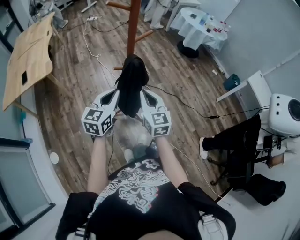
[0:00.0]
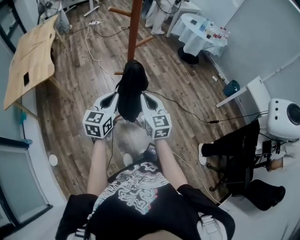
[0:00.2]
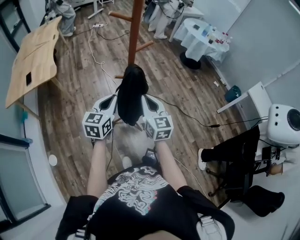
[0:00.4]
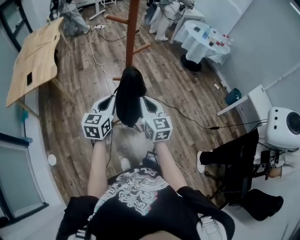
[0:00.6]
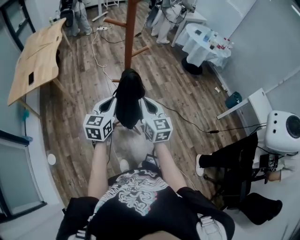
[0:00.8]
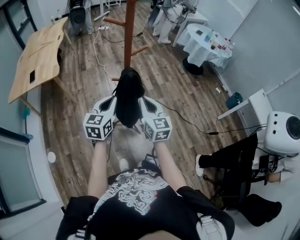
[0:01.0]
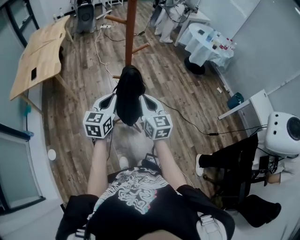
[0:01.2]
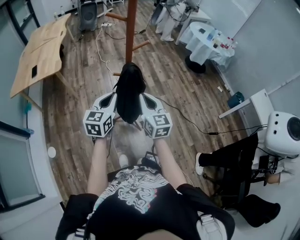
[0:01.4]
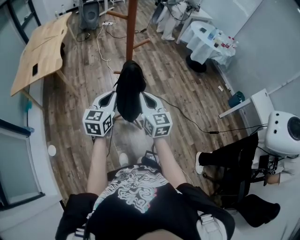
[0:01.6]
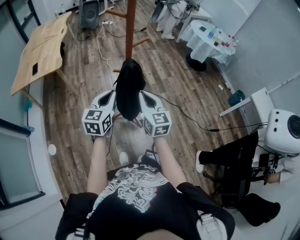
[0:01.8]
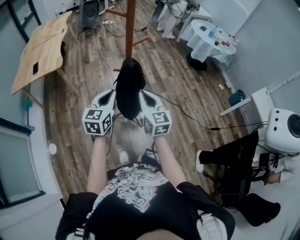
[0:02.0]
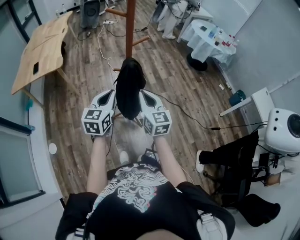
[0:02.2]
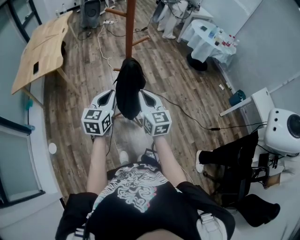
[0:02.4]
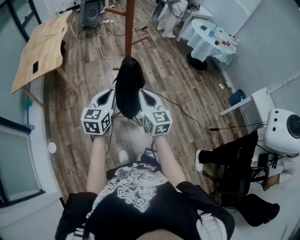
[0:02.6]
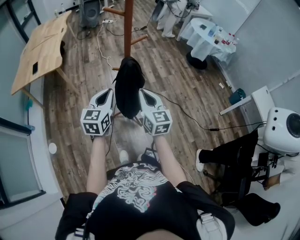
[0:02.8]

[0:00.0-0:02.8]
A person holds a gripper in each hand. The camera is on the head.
0.0 to 1.4 s: The right gripper changes place by approximately 5 cm.
1.4 to 2.8 s: The grippers stay close to where they were, moving slightly.

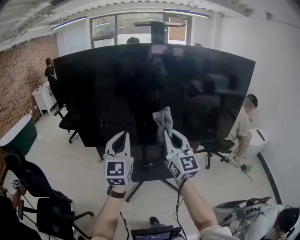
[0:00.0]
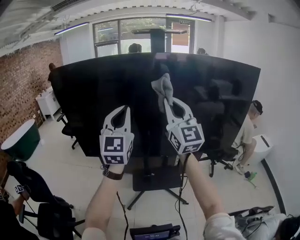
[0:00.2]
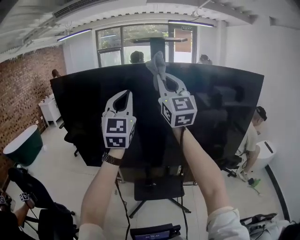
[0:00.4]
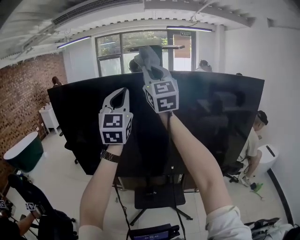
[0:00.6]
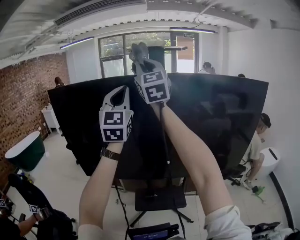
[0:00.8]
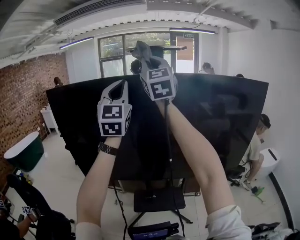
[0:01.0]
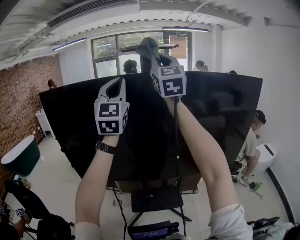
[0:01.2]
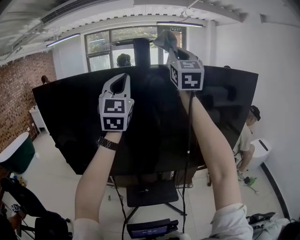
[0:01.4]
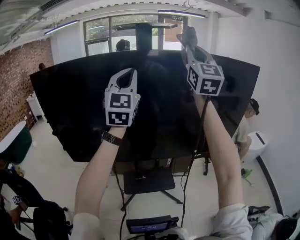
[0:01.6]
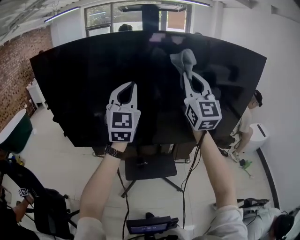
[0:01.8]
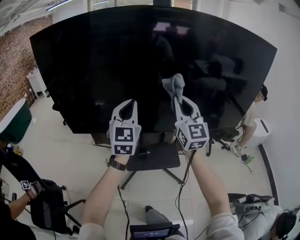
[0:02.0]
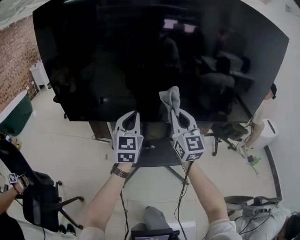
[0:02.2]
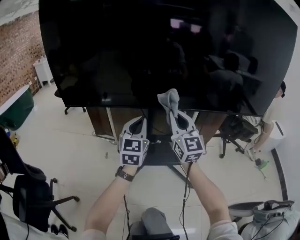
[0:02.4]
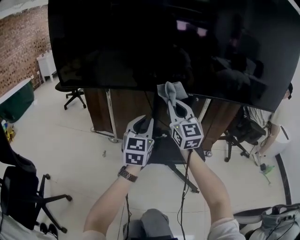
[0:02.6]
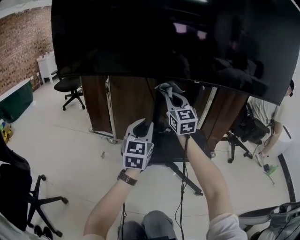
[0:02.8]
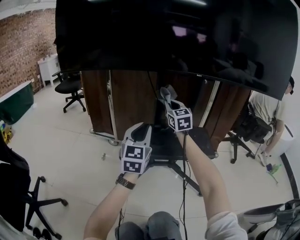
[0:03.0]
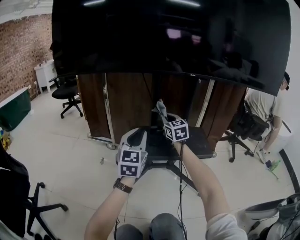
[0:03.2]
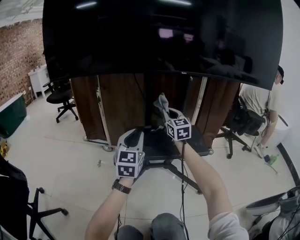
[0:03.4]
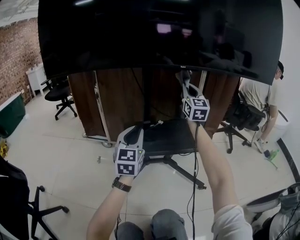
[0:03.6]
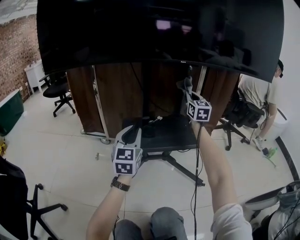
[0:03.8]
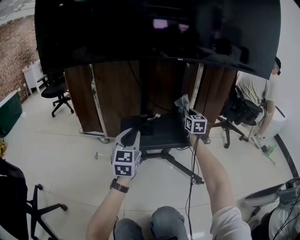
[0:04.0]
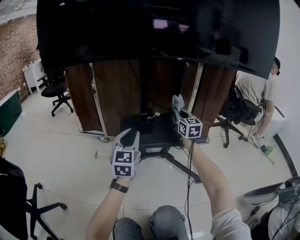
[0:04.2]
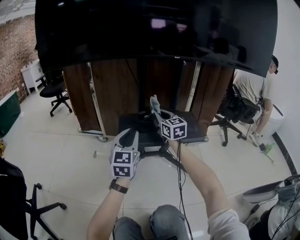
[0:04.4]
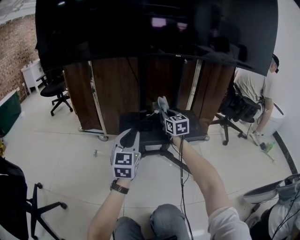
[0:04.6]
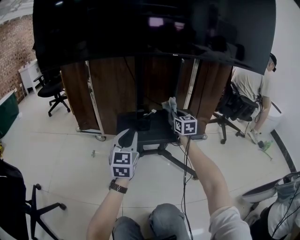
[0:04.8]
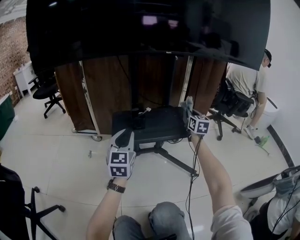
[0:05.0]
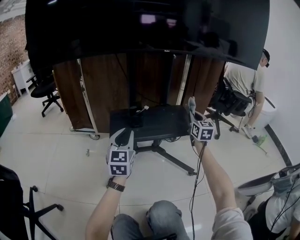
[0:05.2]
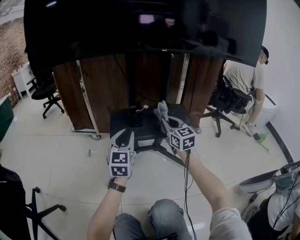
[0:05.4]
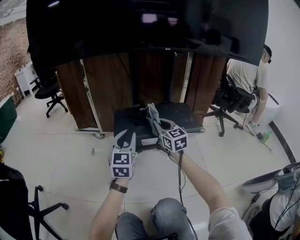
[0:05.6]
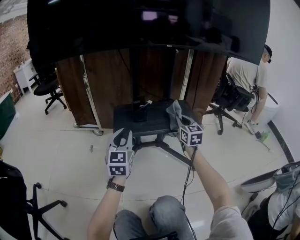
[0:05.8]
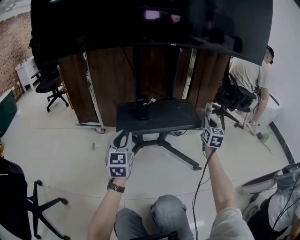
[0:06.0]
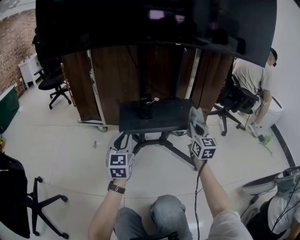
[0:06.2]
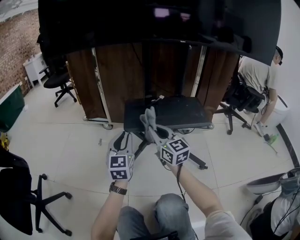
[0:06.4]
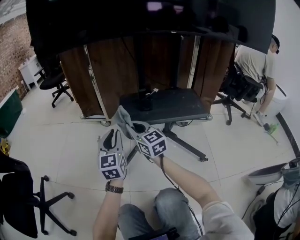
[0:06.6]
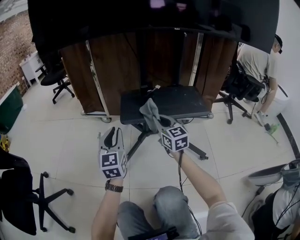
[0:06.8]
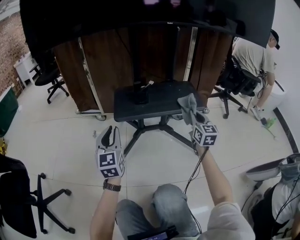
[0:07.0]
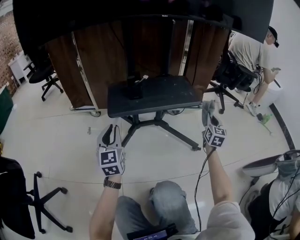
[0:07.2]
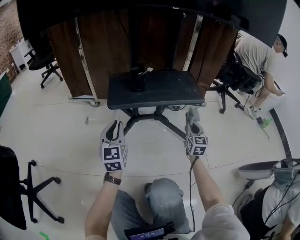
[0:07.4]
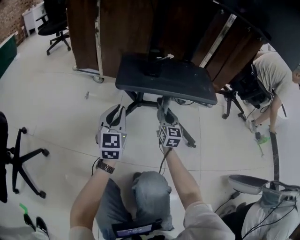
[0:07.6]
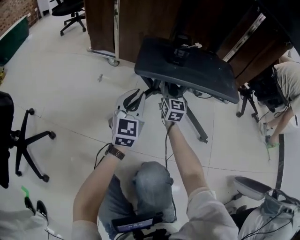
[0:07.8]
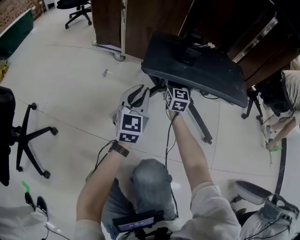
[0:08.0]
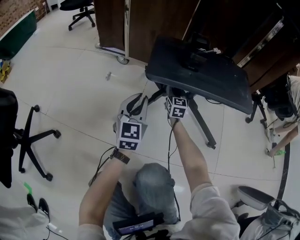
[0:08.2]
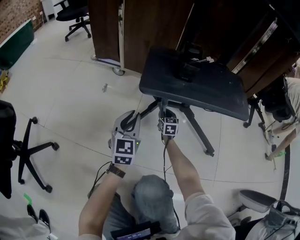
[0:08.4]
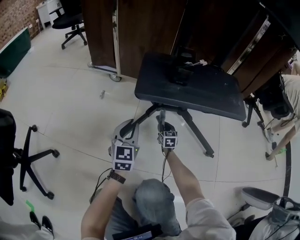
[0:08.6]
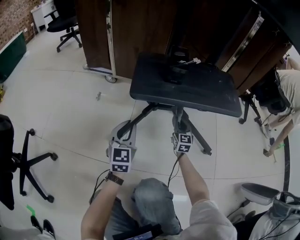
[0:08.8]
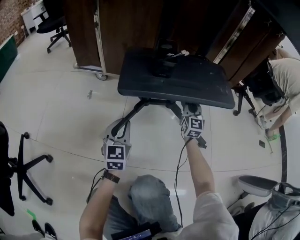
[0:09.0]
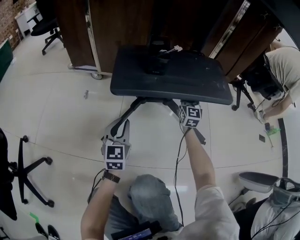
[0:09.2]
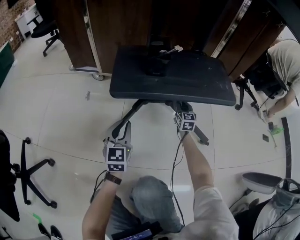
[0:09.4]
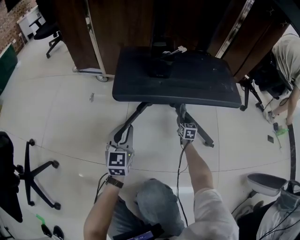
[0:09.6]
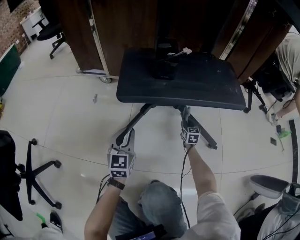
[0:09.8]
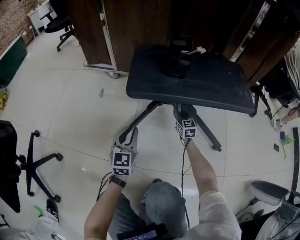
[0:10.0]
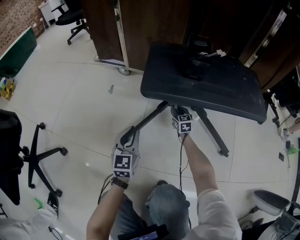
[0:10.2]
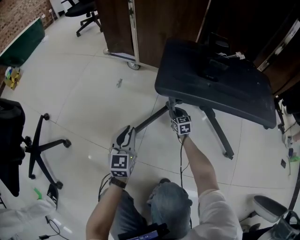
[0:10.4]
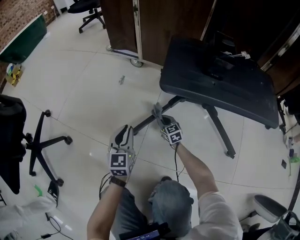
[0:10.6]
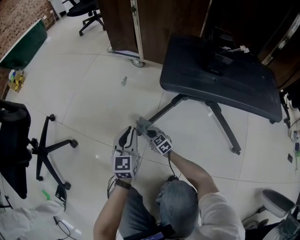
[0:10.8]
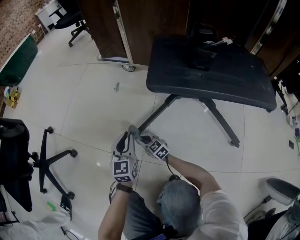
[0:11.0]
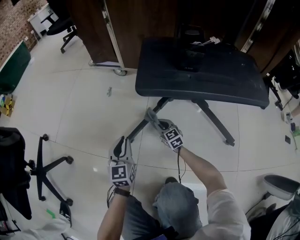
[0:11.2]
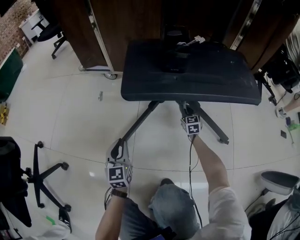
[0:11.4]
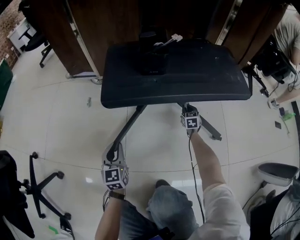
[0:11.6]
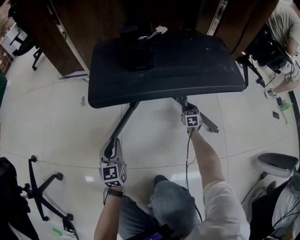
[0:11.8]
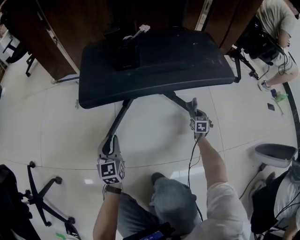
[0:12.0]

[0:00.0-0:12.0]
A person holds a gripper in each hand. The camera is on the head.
0.0 to 1.6 s: Both grippers travel together upward, forward and to the right, some 35 cm. The right gripper swivels about 20 degrees.
1.6 to 3.0 s: Both grippers move downward, some 1 m. The right gripper angles its fingers downward, by some 30 degrees; the left gripper turns by about 20 degrees.
3.0 to 4.4 s: The right gripper goes some 10 cm downward and backward, and moves approximately 20 cm to the right and comes back. Meanwhile the left gripper moves downward, roughly 10 cm.
4.4 to 6.0 s: The left gripper shifts about 5 cm downward; the right gripper moves left and right over roughly 30 cm, changing direction 2 times, and turns by approximately 40 degrees.
6.0 to 7.6 s: The left gripper shifts some 10 cm downward; the right gripper moves approximately 35 cm, and changes its angle by roughly 20 degrees.
7.6 to 9.0 s: The left gripper heads downward and forward, covering approximately 10 cm; the right gripper travels forward and to the right by approximately 15 cm, and travels downward and back again, about 25 cm each way.
9.0 to 10.4 s: The left gripper travels to the left and downward by some 15 cm, while the right gripper moves up and down over about 30 cm, changing direction 2 times, and tips its fingers downward by approximately 30 degrees.
10.4 to 12.0 s: The left gripper changes place by about 10 cm. The right gripper changes place by some 40 cm, and rotates approximately 40 degrees.

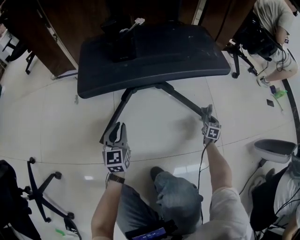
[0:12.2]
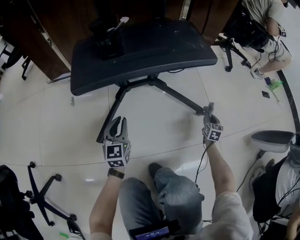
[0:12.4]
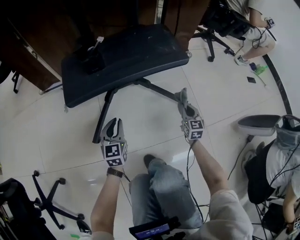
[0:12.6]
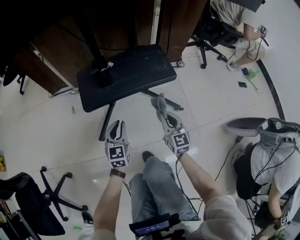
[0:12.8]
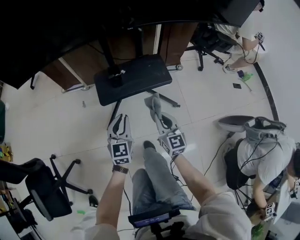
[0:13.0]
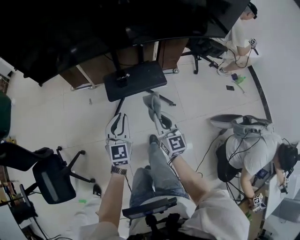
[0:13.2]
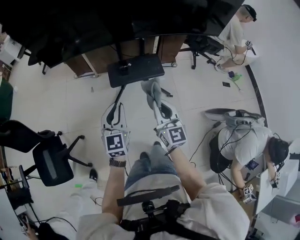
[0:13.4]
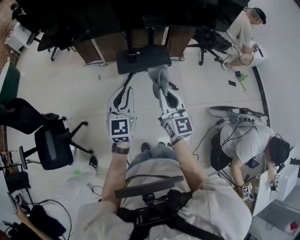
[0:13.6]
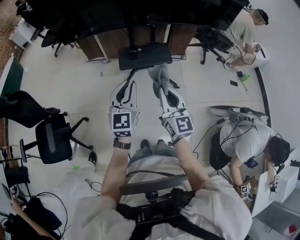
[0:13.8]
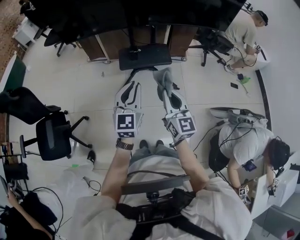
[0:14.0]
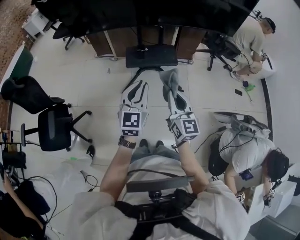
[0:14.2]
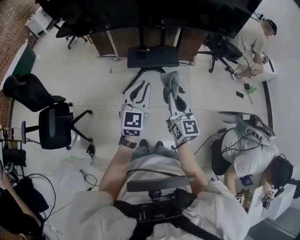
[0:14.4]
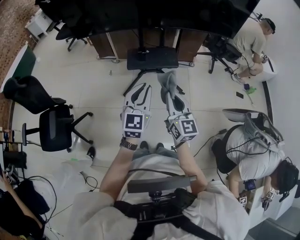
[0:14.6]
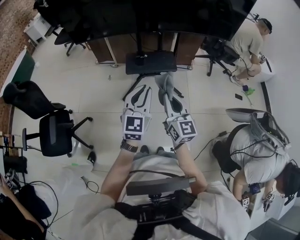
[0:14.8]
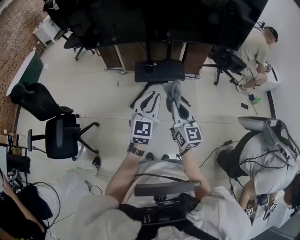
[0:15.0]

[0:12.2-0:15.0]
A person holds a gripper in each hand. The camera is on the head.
12.2 to 13.6 s: The grippers both shift upward and backward by about 1 m. The right gripper tips its fingers upward by some 40 degrees.
13.6 to 15.0 s: The left gripper goes roughly 10 cm to the right and backward. The right gripper travels backward by approximately 5 cm.

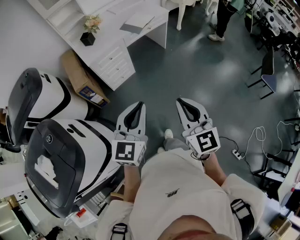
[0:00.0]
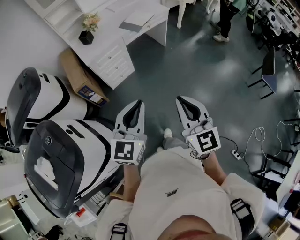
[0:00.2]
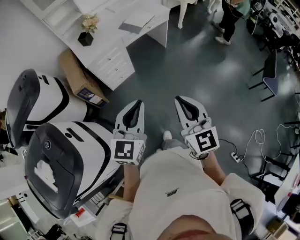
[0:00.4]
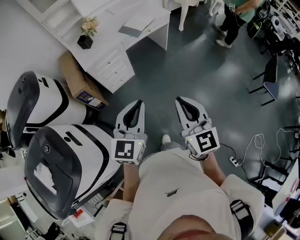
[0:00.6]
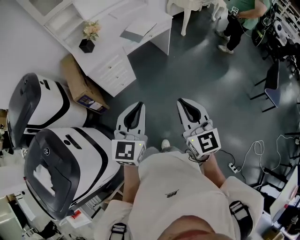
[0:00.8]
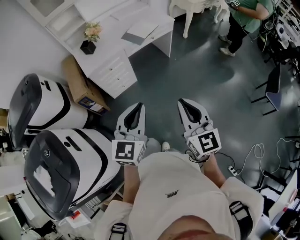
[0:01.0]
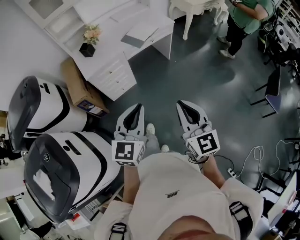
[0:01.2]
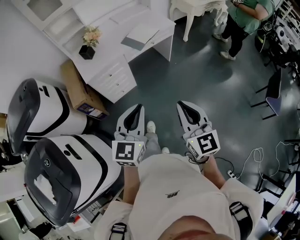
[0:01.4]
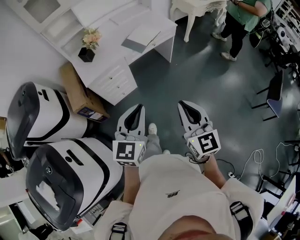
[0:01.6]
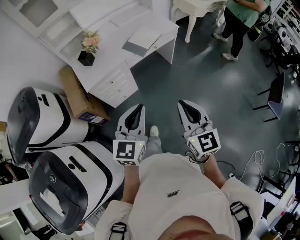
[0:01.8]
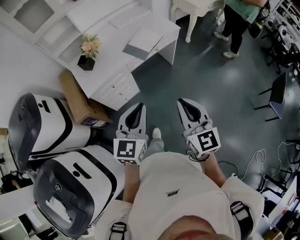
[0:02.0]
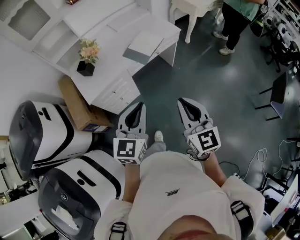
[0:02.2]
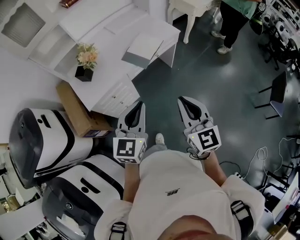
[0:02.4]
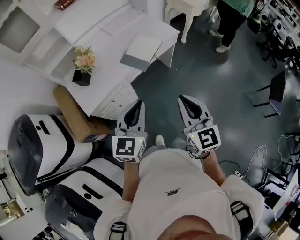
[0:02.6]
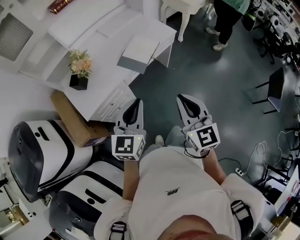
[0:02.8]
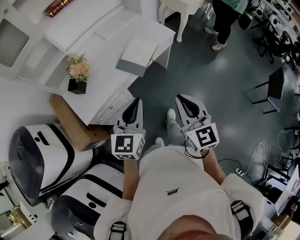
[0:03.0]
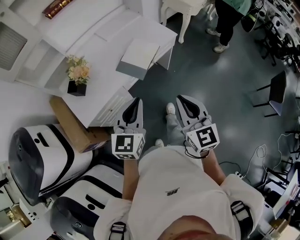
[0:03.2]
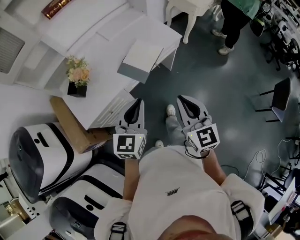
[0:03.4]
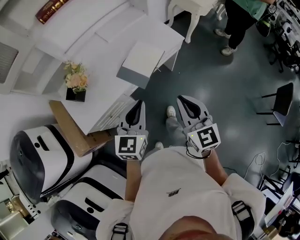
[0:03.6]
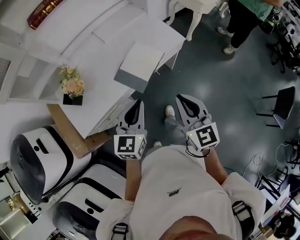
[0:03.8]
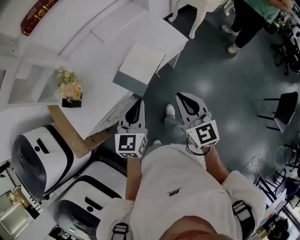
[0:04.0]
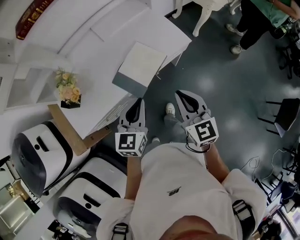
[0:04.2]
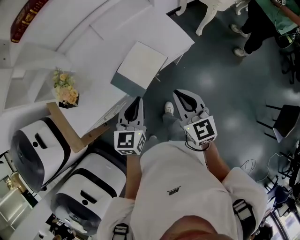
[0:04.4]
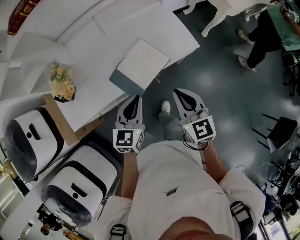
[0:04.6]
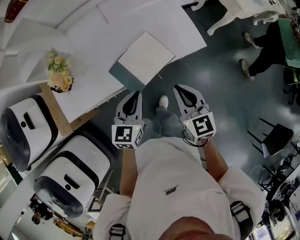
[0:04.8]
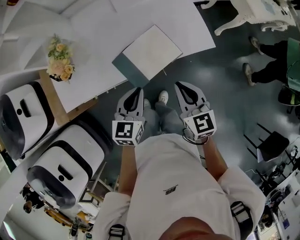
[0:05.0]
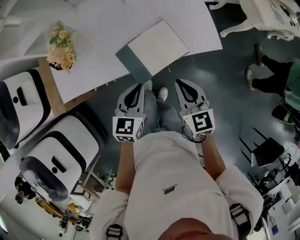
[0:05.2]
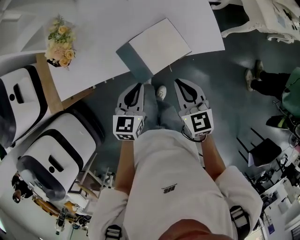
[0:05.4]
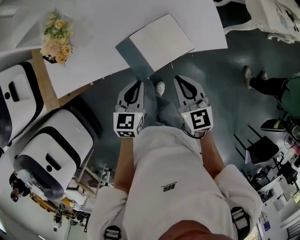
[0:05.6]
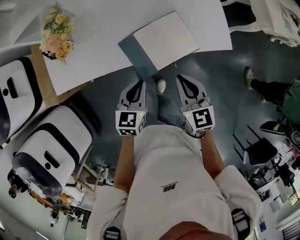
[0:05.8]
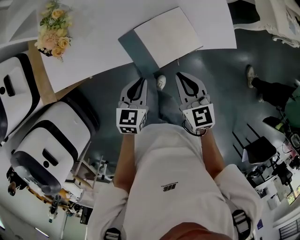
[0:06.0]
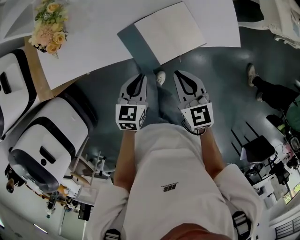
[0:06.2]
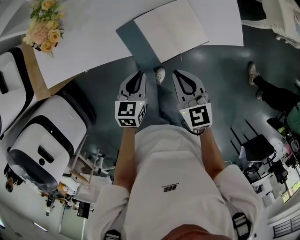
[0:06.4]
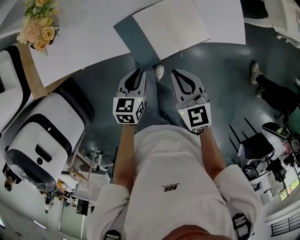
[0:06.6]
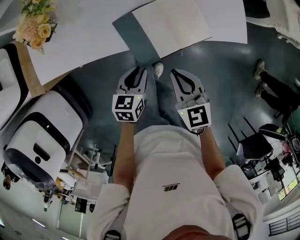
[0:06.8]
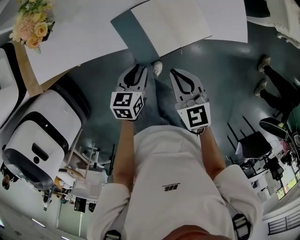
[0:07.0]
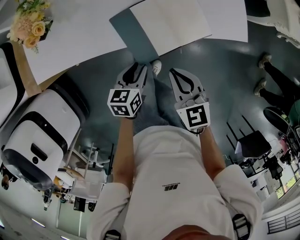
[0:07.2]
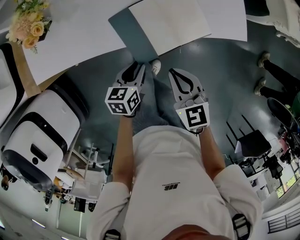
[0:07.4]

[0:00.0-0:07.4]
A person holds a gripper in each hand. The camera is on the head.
0.0 to 1.4 s: Both grippers travel together forward, roughly 20 cm.
1.4 to 3.0 s: Both grippers travel together forward, some 35 cm.
3.0 to 4.4 s: The right gripper is displaced forward by roughly 30 cm, and changes its angle by roughly 20 degrees. Meanwhile the left gripper shifts some 30 cm forward and downward.
4.4 to 6.0 s: The left gripper is displaced downward by about 20 cm, and swivels some 20 degrees; the right gripper heads downward, to the left and forward, covering some 20 cm, and swivels roughly 20 degrees.
6.0 to 7.4 s: The left gripper goes some 10 cm downward, while the right gripper heads downward, covering about 5 cm.
